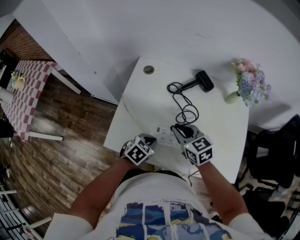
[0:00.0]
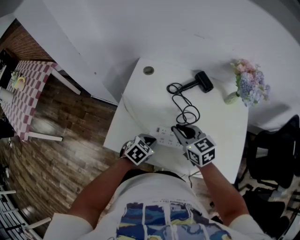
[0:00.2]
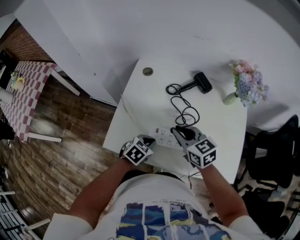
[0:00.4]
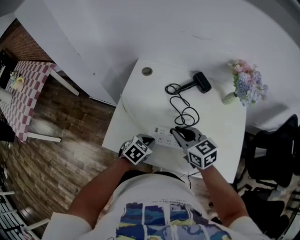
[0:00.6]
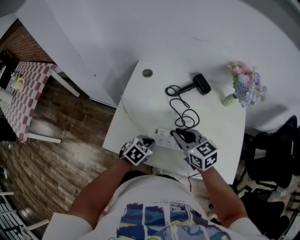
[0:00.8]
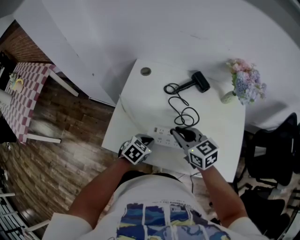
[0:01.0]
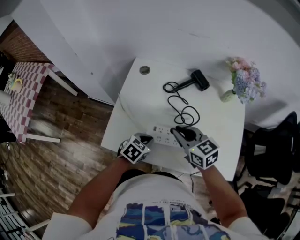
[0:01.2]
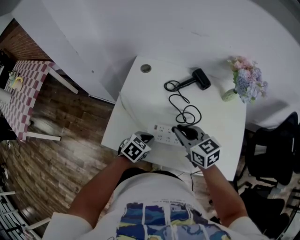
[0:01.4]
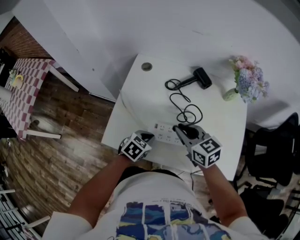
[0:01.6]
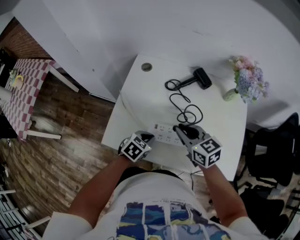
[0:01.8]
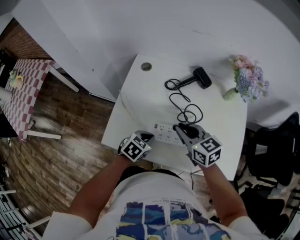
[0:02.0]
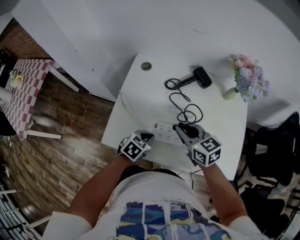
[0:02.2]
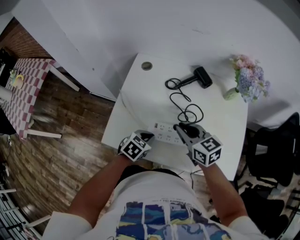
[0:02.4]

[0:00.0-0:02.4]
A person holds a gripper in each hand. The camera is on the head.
0:00.0 to 0:02.4: The grippers make only small movements.

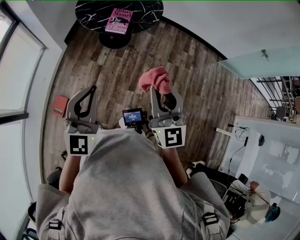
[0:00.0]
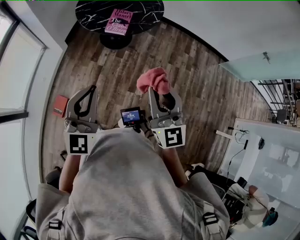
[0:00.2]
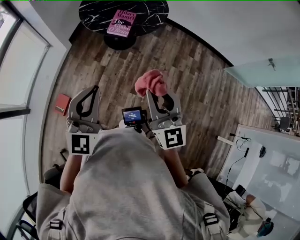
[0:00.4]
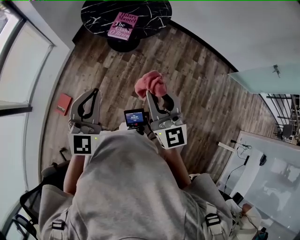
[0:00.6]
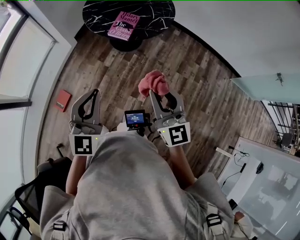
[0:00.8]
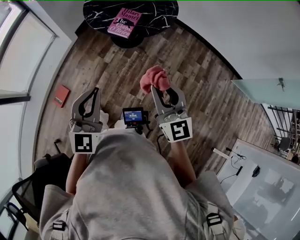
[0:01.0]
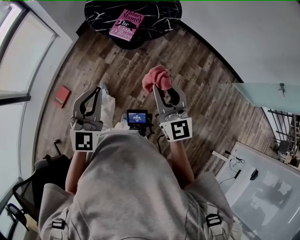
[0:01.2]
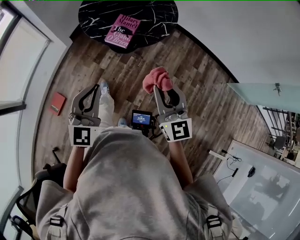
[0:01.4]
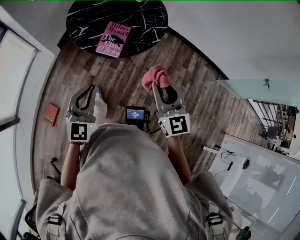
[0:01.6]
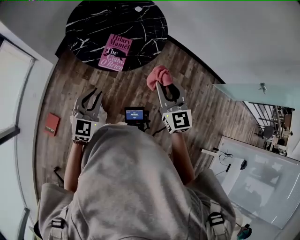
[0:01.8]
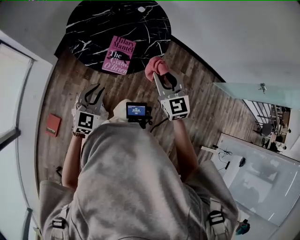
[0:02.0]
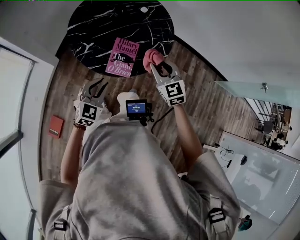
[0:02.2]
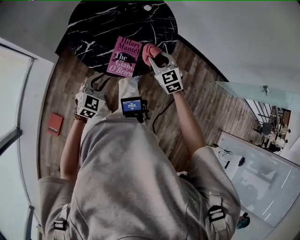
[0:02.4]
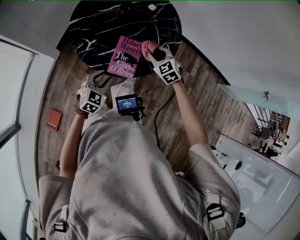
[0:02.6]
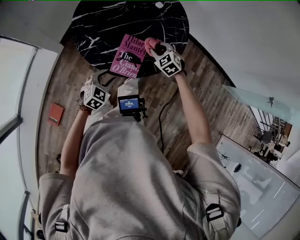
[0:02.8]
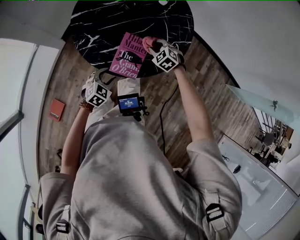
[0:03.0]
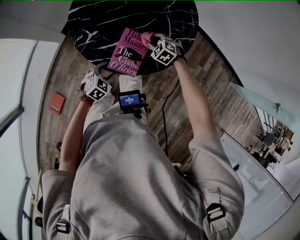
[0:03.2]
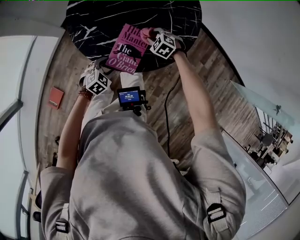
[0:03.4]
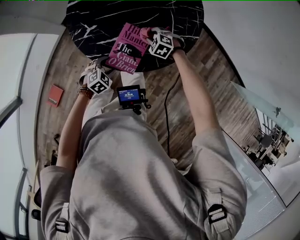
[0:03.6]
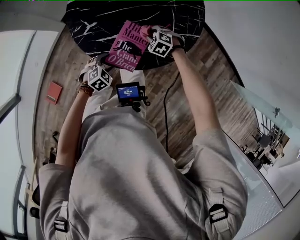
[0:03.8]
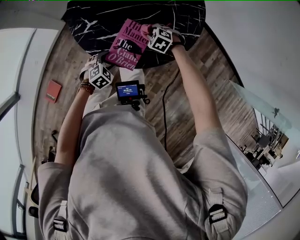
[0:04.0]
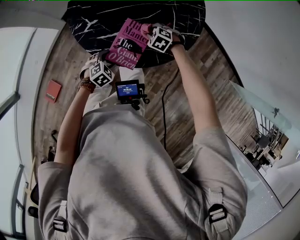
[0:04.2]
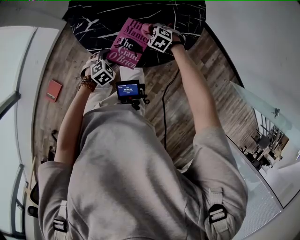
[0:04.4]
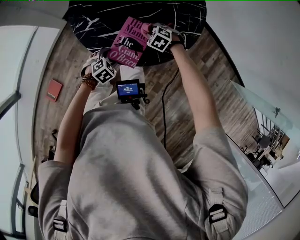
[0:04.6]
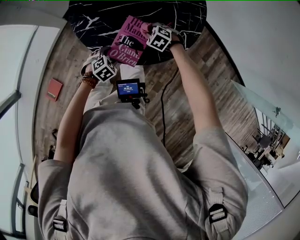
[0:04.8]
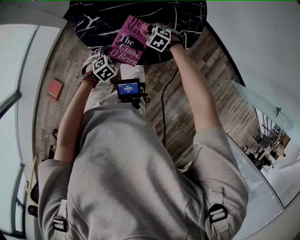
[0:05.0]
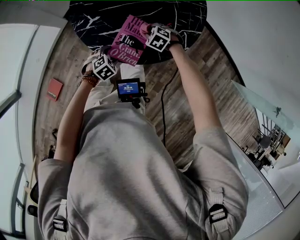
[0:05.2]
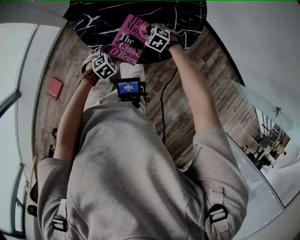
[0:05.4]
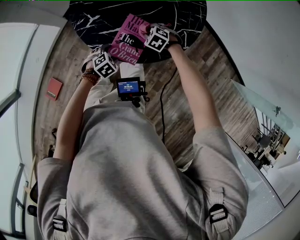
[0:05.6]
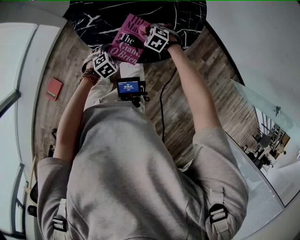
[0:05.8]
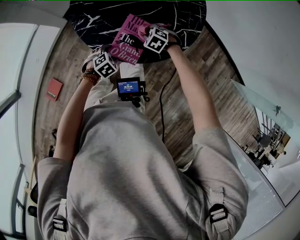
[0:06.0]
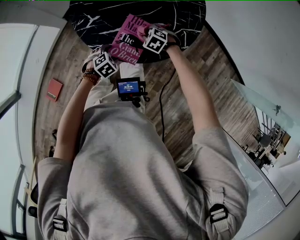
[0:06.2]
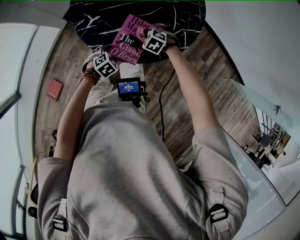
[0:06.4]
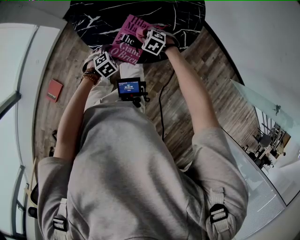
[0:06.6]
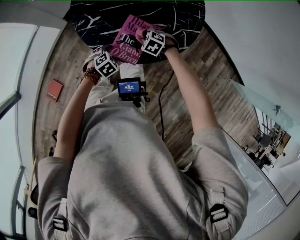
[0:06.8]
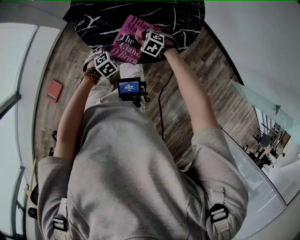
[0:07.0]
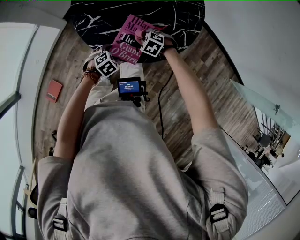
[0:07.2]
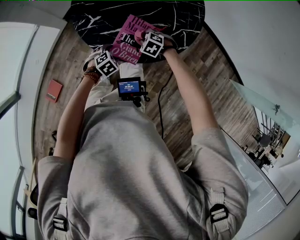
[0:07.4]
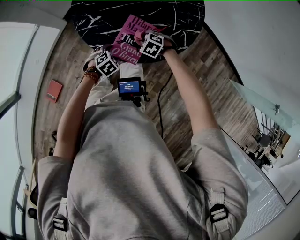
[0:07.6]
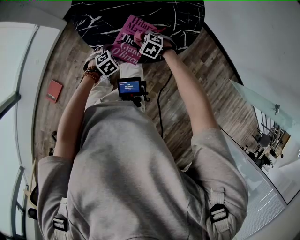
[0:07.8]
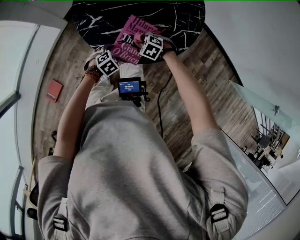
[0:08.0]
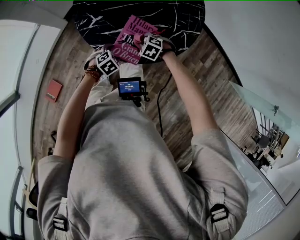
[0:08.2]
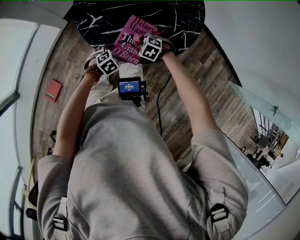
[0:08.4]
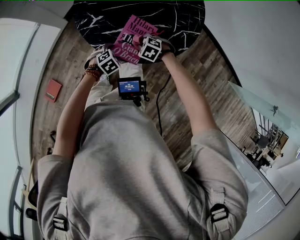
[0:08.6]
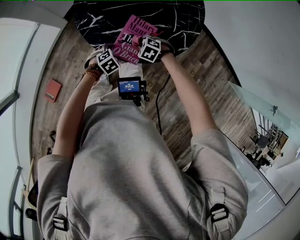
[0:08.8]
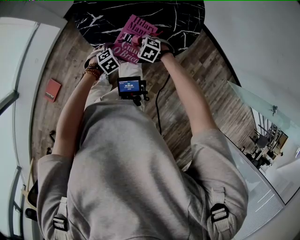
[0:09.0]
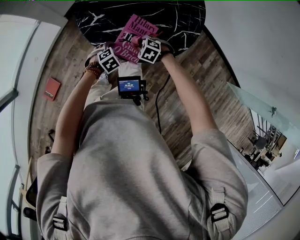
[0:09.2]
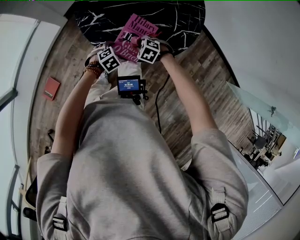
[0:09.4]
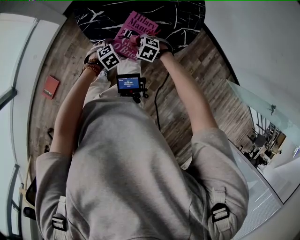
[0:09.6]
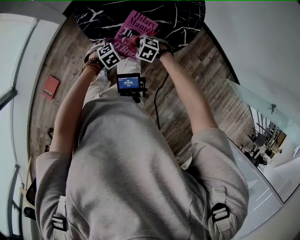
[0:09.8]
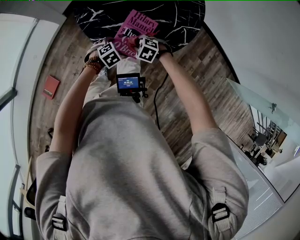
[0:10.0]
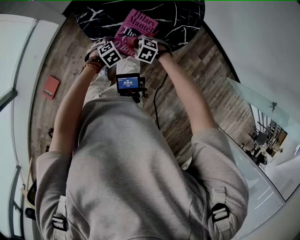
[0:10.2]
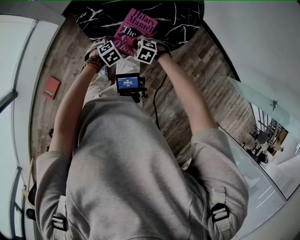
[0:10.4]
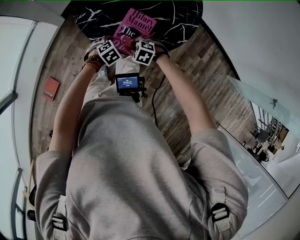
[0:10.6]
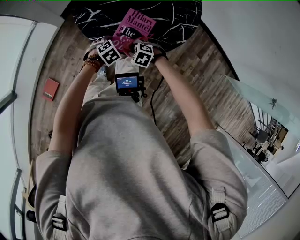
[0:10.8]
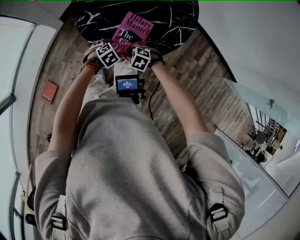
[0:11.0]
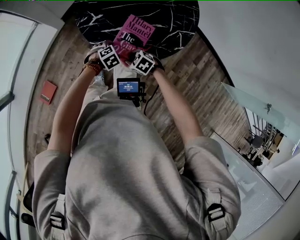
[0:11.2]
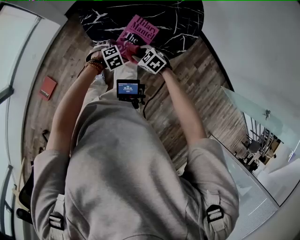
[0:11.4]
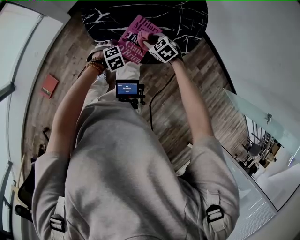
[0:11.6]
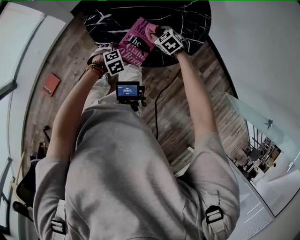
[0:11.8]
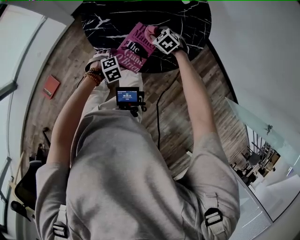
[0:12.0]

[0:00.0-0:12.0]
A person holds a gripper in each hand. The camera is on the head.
0:00.0 to 0:01.6: The right gripper shifts approximately 25 cm forward. The left gripper goes approximately 30 cm forward and downward.
0:01.6 to 0:03.0: The left gripper travels downward and forward by approximately 35 cm, angles its fingers downward, by about 30 degrees, and opens its fingers, while the right gripper moves forward and downward, some 50 cm, and angles its fingers downward, by approximately 50 degrees.
0:03.0 to 0:04.4: The two grippers go roughly 5 cm downward.
0:04.4 to 0:06.0: The grippers move only a little.
0:06.0 to 0:07.6: The grippers make only small movements.
0:07.6 to 0:09.0: There are only small adjustments of the grippers.
0:09.0 to 0:10.4: The right gripper moves some 5 cm.
0:10.4 to 0:12.0: The right gripper moves approximately 15 cm.

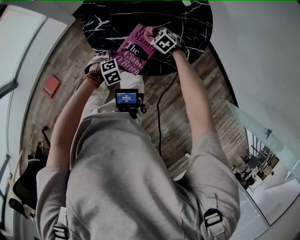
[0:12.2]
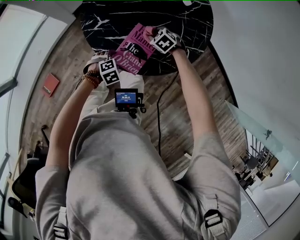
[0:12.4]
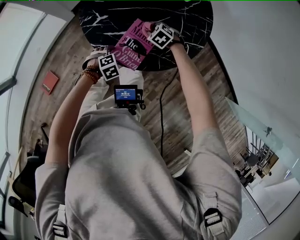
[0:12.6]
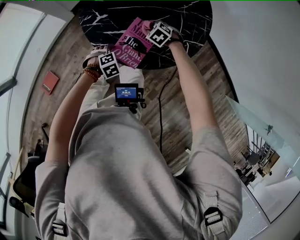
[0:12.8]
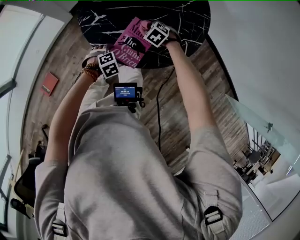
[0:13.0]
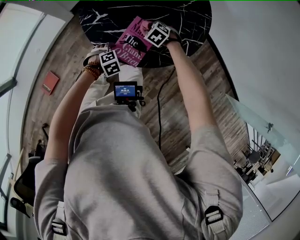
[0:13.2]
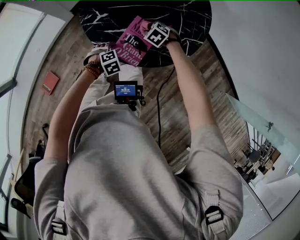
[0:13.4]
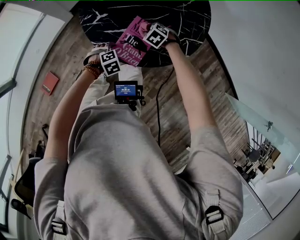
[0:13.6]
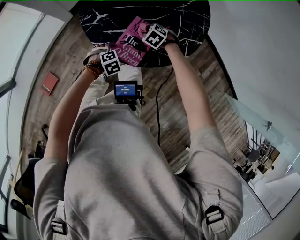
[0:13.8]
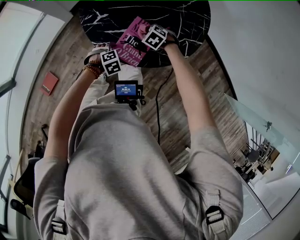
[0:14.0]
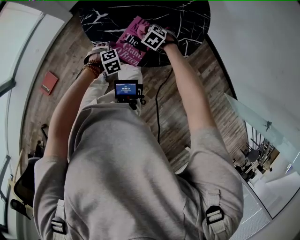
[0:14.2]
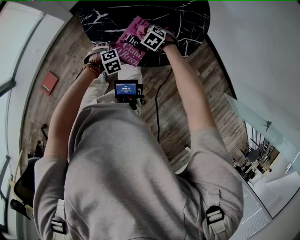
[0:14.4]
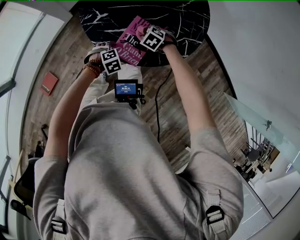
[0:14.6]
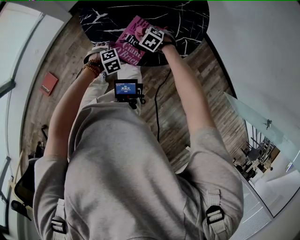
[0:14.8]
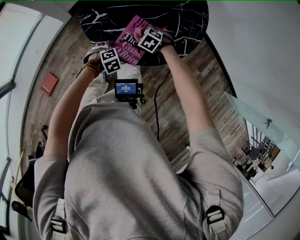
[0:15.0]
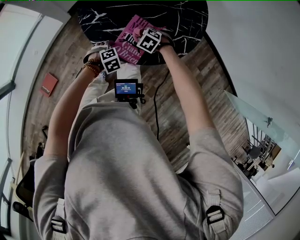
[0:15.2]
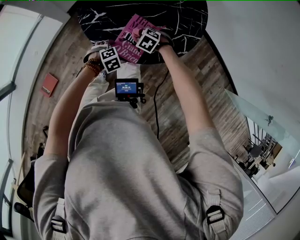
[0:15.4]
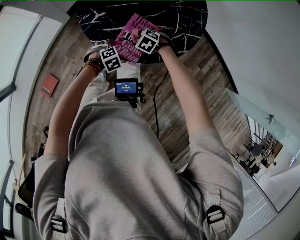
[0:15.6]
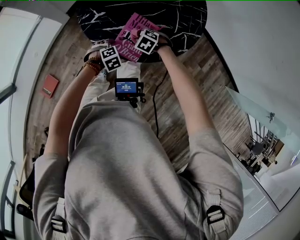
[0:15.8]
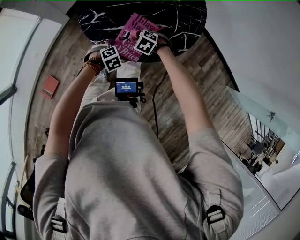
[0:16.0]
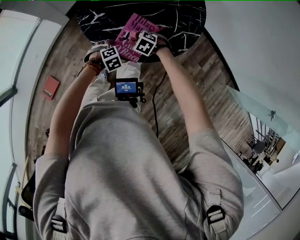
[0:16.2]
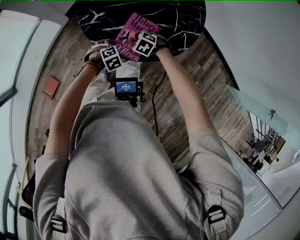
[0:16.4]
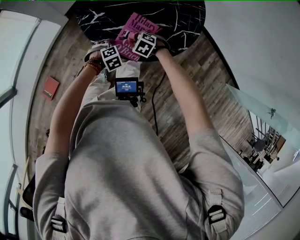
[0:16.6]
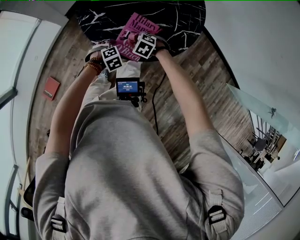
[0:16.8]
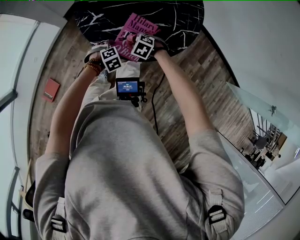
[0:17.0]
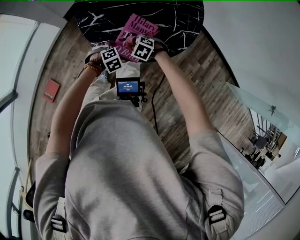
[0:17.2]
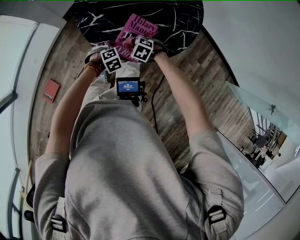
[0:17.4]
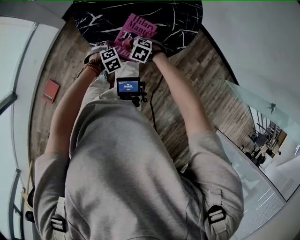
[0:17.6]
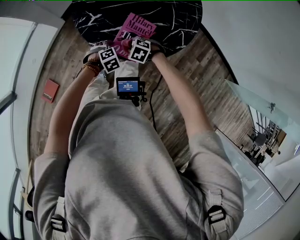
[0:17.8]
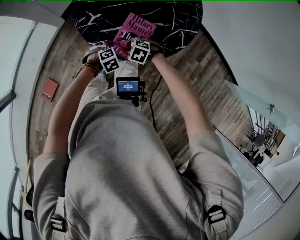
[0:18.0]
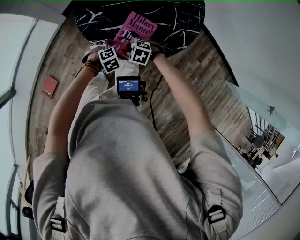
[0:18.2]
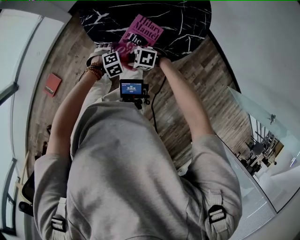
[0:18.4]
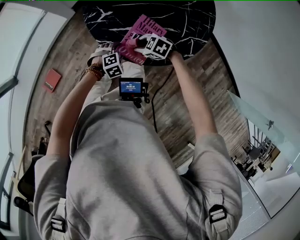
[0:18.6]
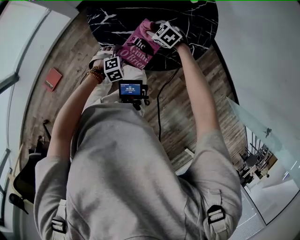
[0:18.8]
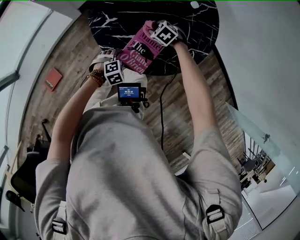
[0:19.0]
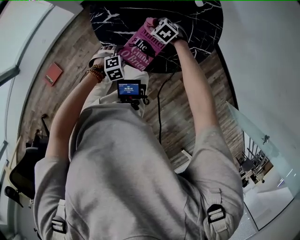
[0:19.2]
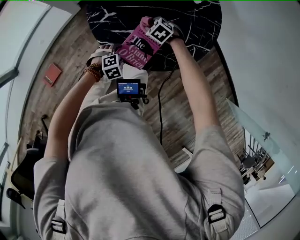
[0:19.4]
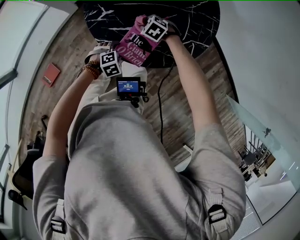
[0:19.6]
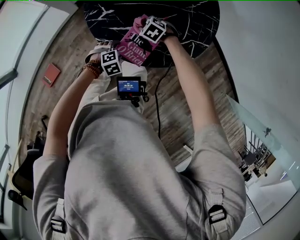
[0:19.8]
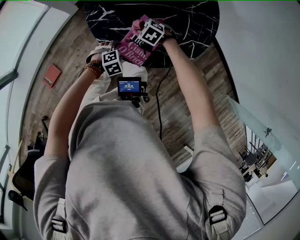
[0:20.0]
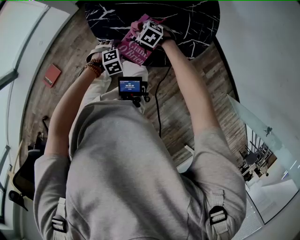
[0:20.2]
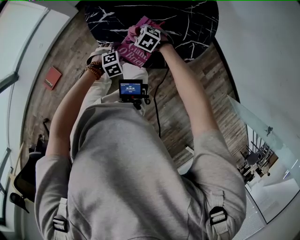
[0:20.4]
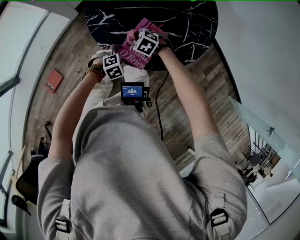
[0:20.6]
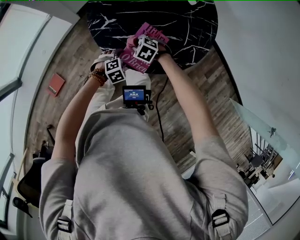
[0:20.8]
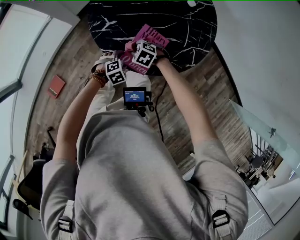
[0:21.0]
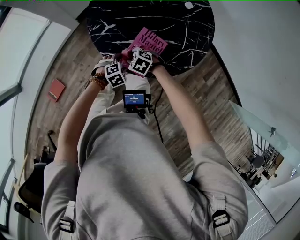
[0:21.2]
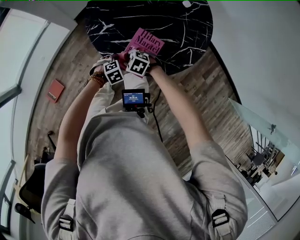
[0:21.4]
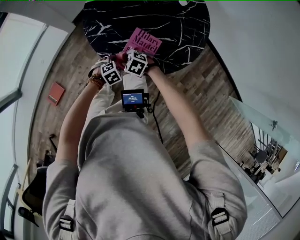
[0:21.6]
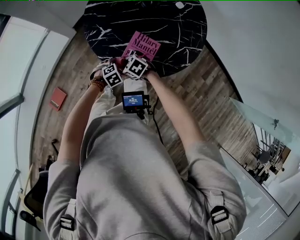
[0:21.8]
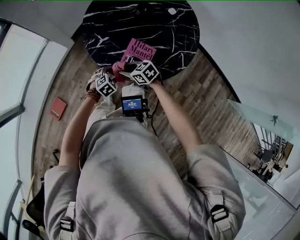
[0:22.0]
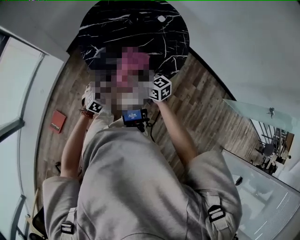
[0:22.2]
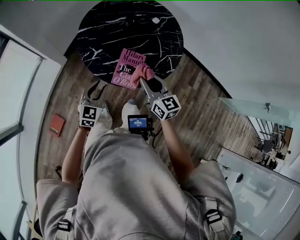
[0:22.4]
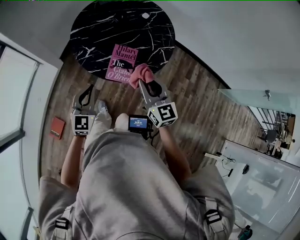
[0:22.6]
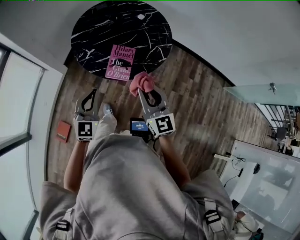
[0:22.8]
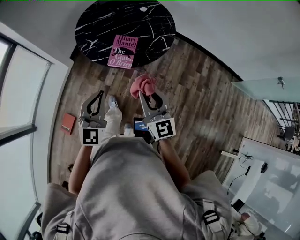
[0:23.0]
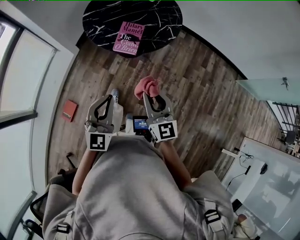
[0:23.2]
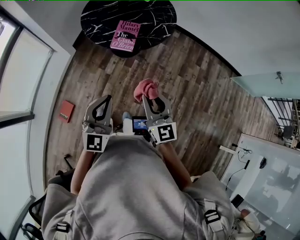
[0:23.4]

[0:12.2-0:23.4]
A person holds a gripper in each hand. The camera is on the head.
0:12.2 to 0:13.8: The grippers move only a little.
0:13.8 to 0:15.4: The grippers make only small movements.
0:15.4 to 0:17.0: The right gripper changes place by roughly 5 cm.
0:17.0 to 0:18.6: The right gripper turns by some 20 degrees.
0:20.2 to 0:21.8: The right gripper moves some 10 cm, and changes its angle by roughly 20 degrees.
0:21.8 to 0:23.4: The left gripper goes roughly 40 cm upward, points its fingers about 70 degrees further upward, and closes its fingers, while the right gripper shifts by about 50 cm, and tilts its fingers some 50 degrees upward.
